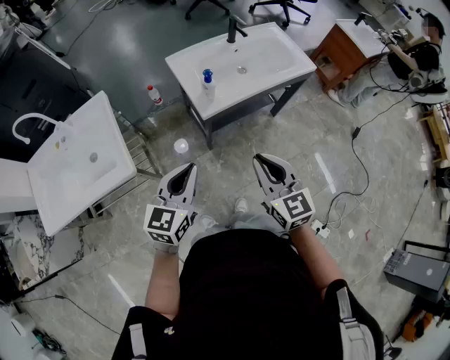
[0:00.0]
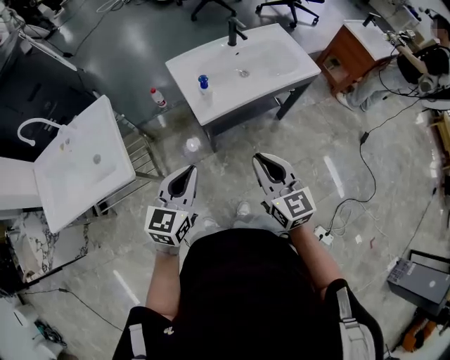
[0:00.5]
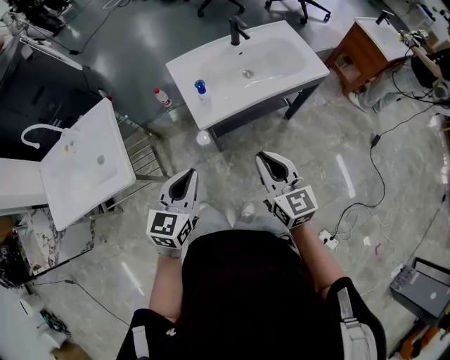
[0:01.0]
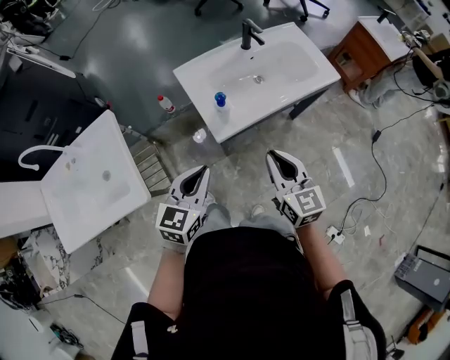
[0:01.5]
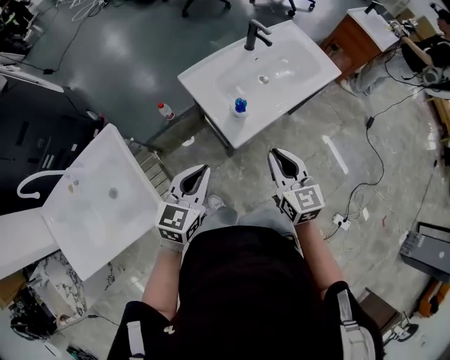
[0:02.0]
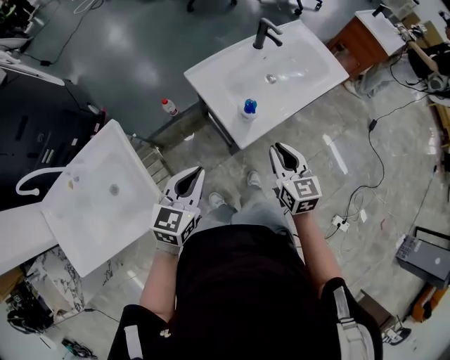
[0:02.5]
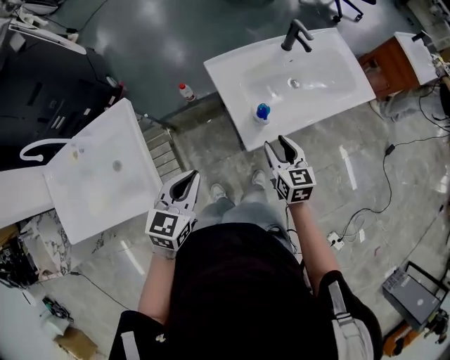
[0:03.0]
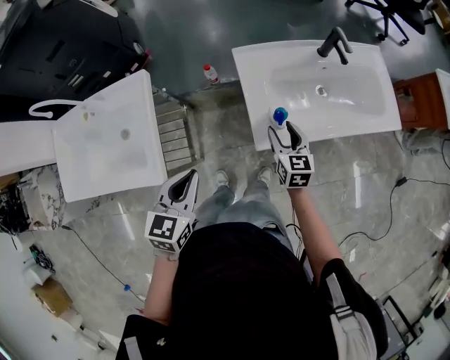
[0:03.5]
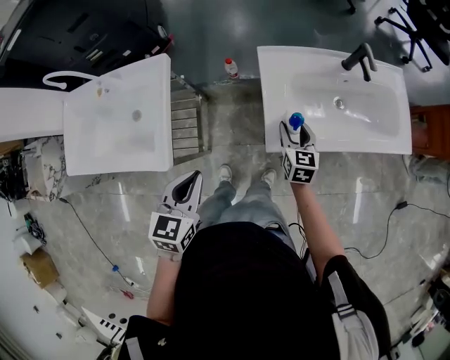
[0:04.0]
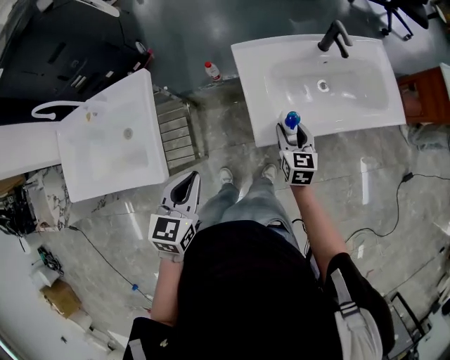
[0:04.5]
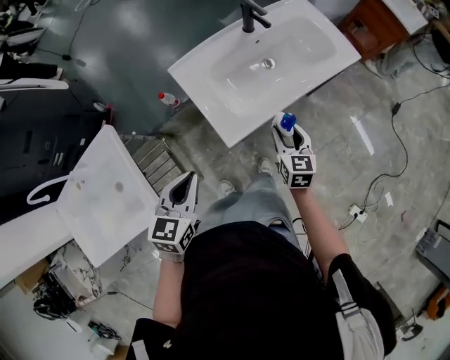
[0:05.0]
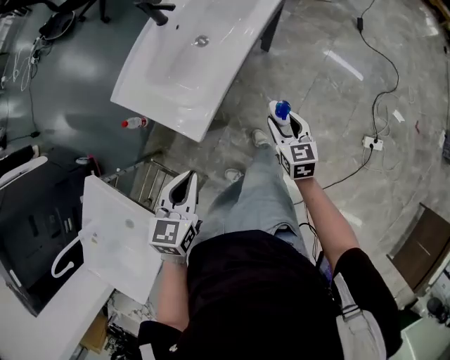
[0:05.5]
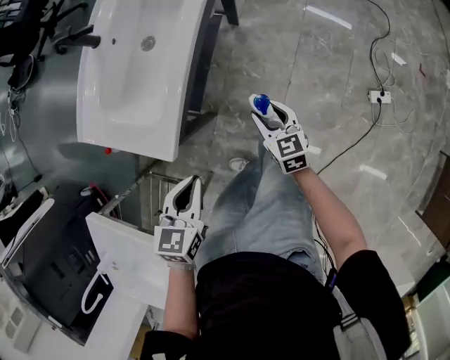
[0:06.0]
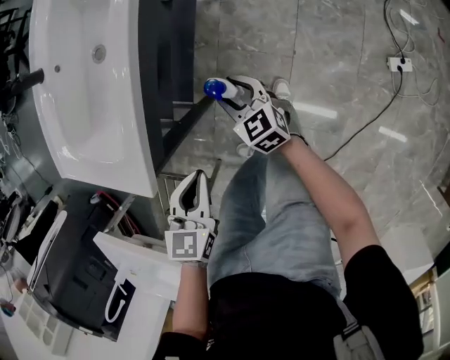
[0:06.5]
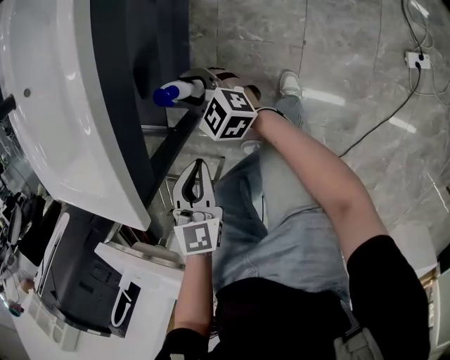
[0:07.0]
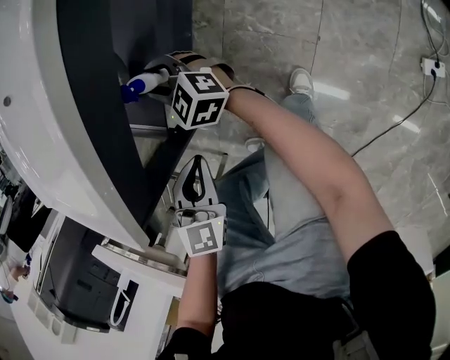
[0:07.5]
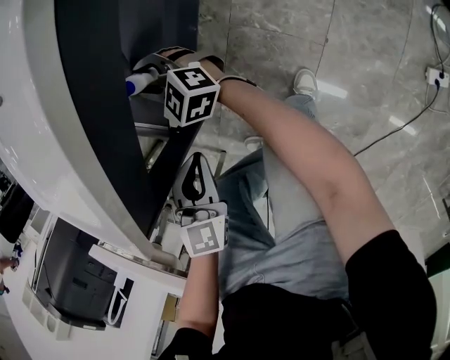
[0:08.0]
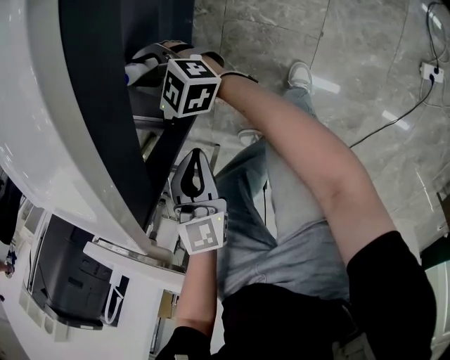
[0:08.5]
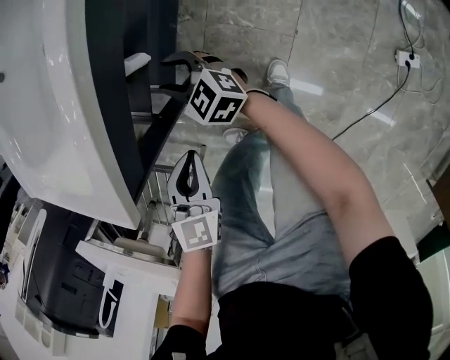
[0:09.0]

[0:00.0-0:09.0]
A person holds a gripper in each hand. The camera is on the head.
0:00.0 to 0:02.0: The left gripper moves forward and to the left, some 20 cm; the right gripper travels forward by some 15 cm.
0:02.0 to 0:04.5: The right gripper travels downward by some 15 cm, and opens its fingers; the left gripper shifts by some 5 cm, and swivels some 30 degrees.
0:04.5 to 0:07.0: Both grippers move downward, roughly 30 cm. The left gripper changes its angle by roughly 60 degrees.
0:07.0 to 0:09.0: The right gripper goes forward and returns, roughly 10 cm each way.

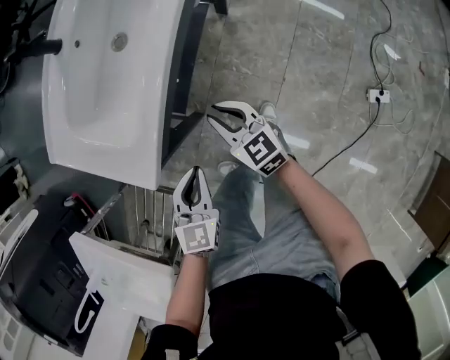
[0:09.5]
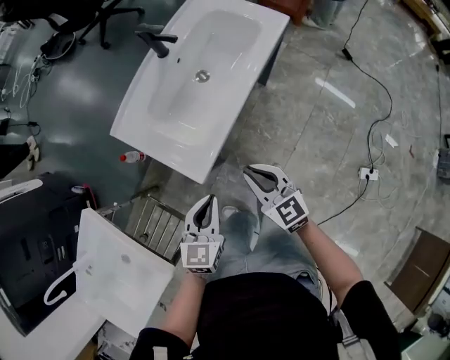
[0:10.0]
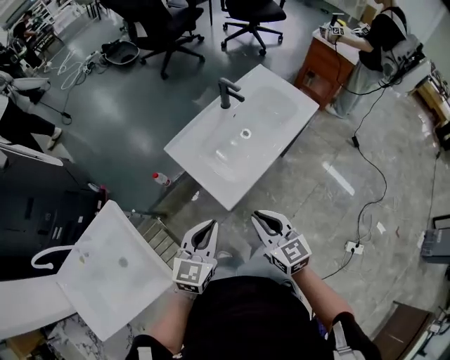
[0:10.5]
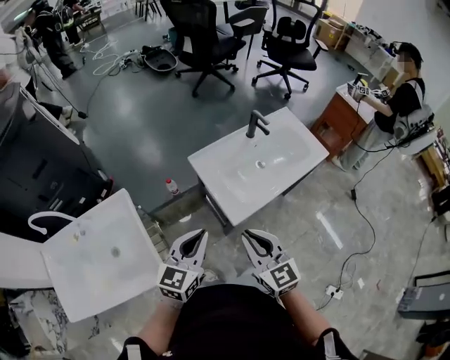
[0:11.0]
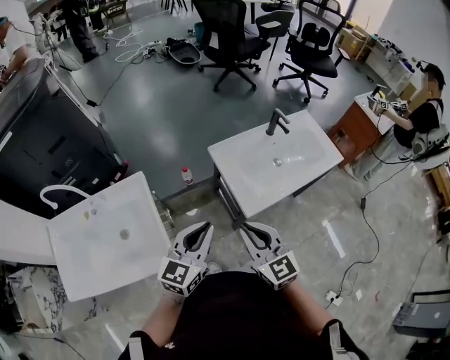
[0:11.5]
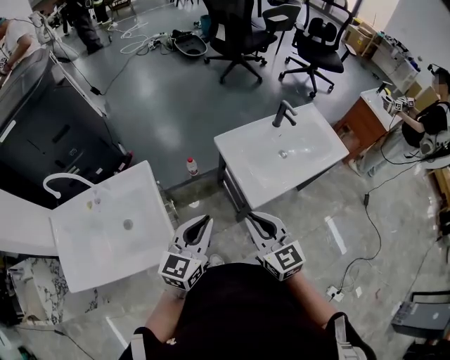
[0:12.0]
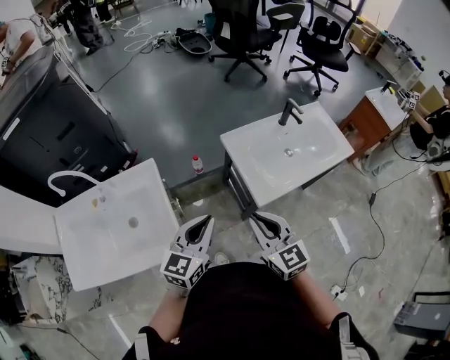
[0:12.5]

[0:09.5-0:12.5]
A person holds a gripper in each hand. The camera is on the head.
0:09.5 to 0:11.0: Both grippers travel together upward and to the left, about 40 cm. The left gripper turns by roughly 30 degrees; the right gripper swivels some 30 degrees.
0:11.0 to 0:12.5: Both grippers travel together to the left, about 10 cm.

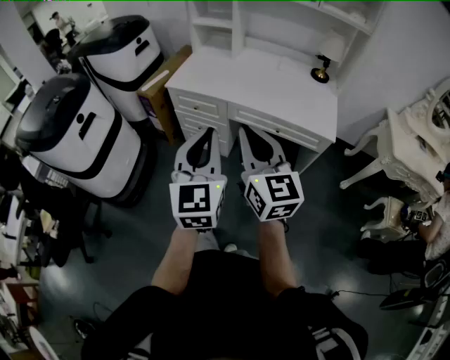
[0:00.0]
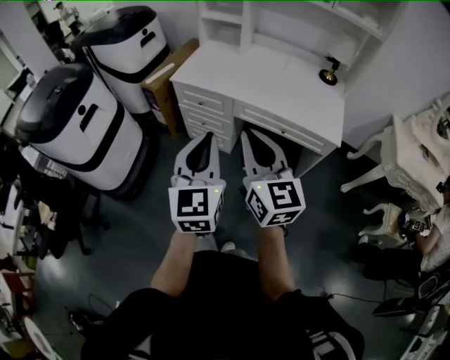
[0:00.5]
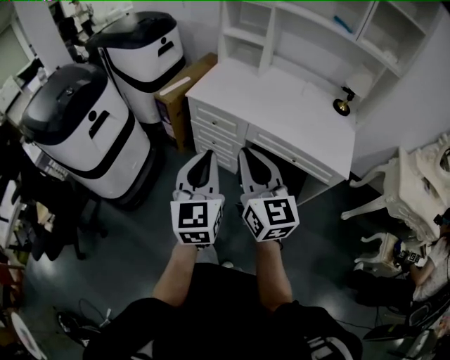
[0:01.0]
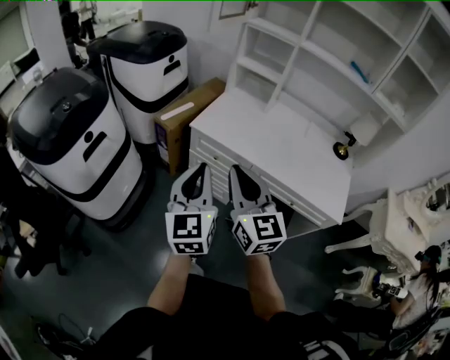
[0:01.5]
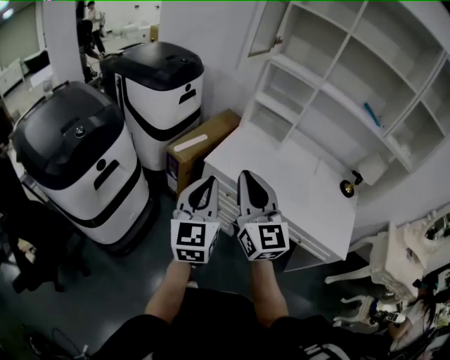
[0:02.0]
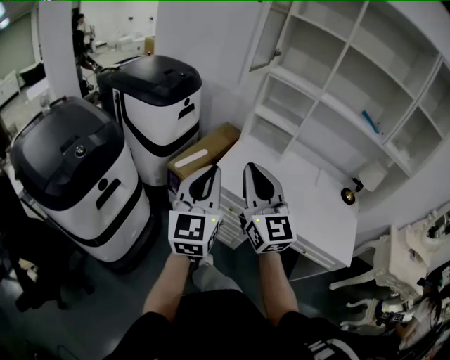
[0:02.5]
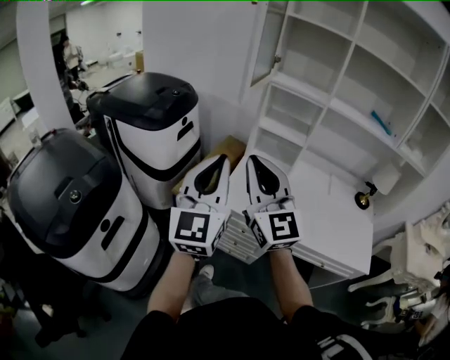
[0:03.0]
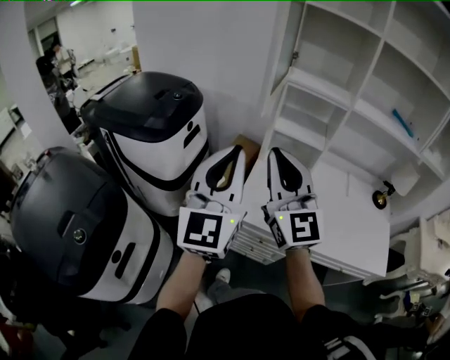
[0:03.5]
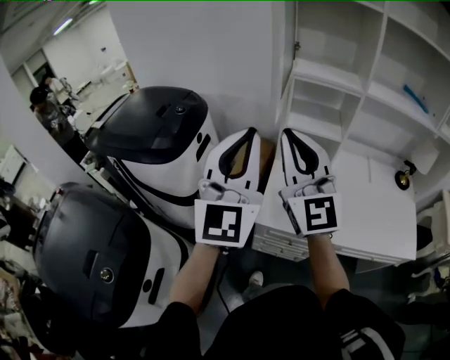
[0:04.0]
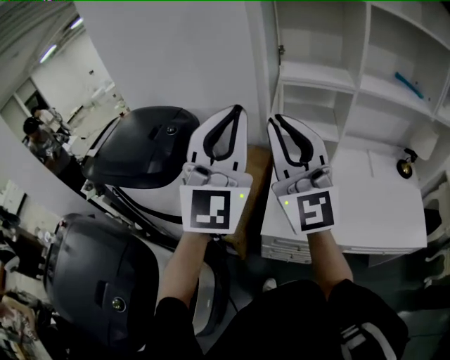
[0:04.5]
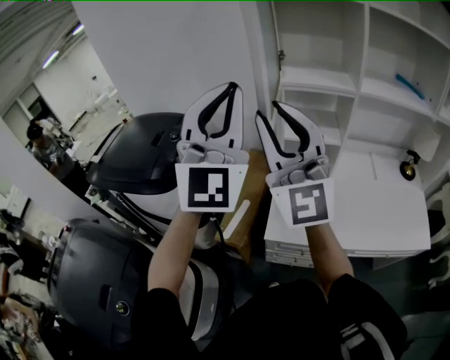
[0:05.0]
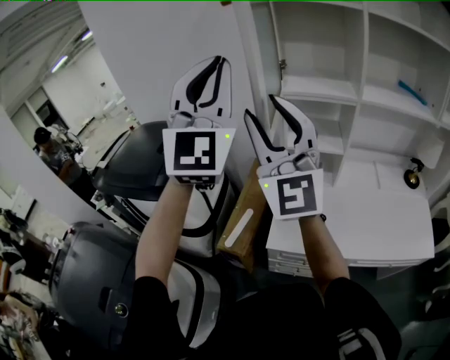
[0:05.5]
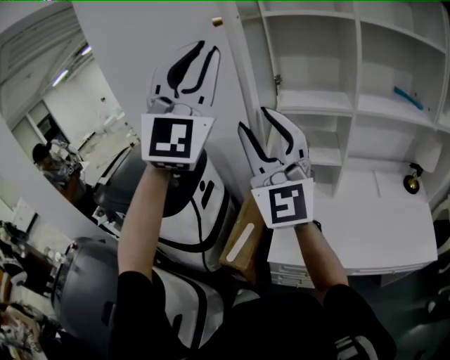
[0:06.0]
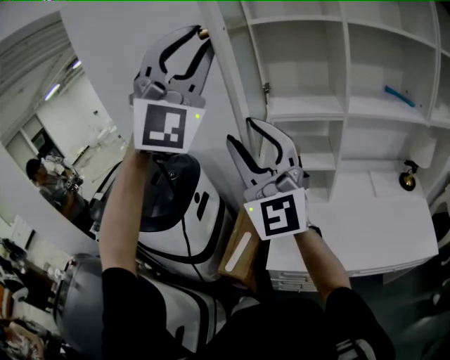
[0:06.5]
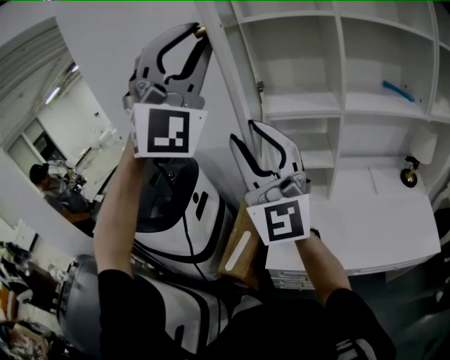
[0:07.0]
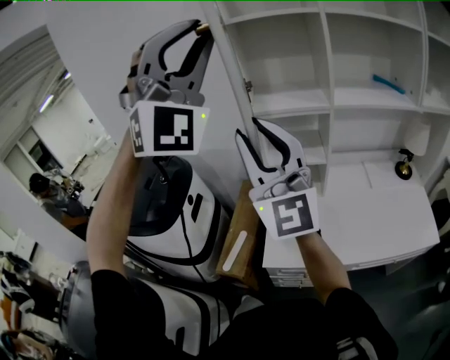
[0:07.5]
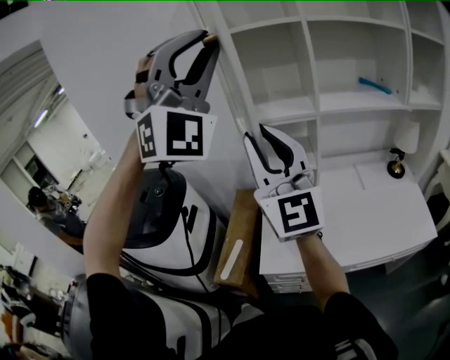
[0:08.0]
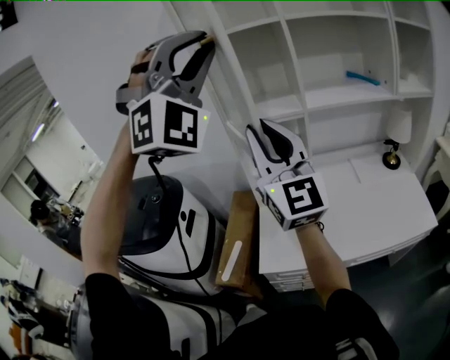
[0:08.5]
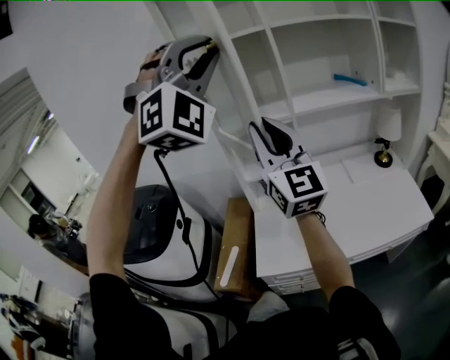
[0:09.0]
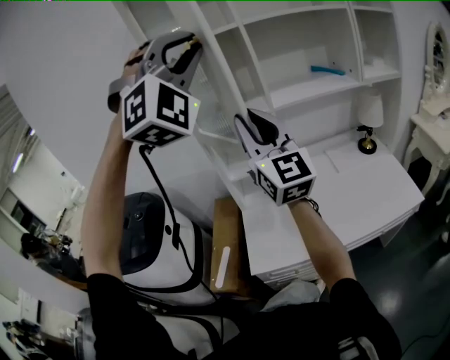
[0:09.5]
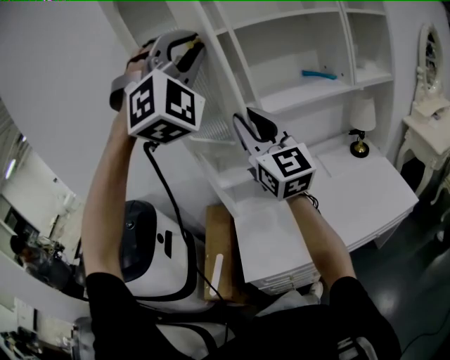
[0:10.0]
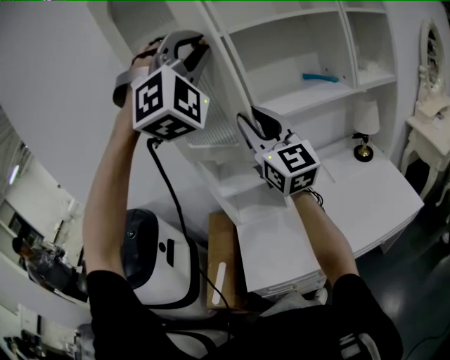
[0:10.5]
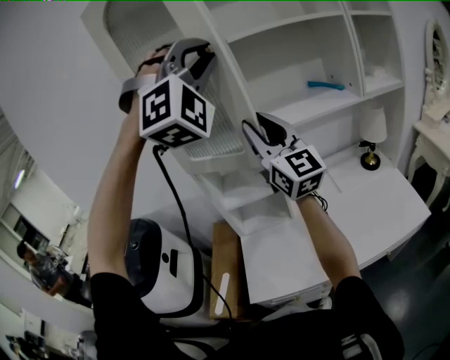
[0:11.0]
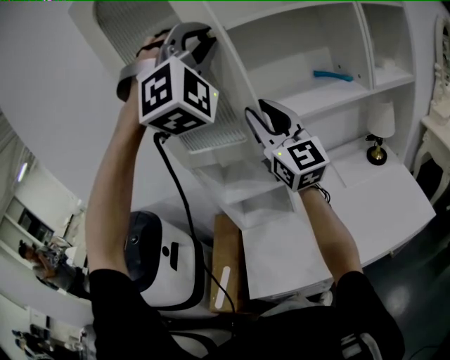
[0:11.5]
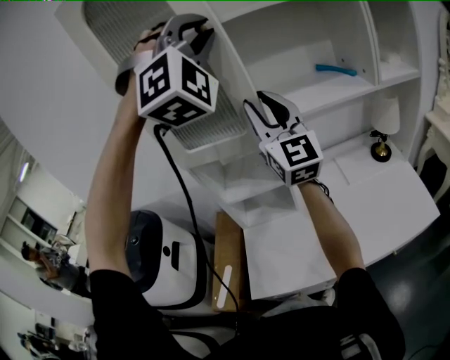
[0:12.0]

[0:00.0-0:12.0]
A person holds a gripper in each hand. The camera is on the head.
0:00.0 to 0:02.0: Both grippers travel together forward and to the left, about 40 cm.
0:02.0 to 0:04.0: The left gripper goes some 40 cm forward and upward, and turns by roughly 30 degrees. Meanwhile the right gripper moves forward, roughly 35 cm, and turns by approximately 20 degrees.
0:04.0 to 0:06.0: The left gripper moves upward and forward, roughly 25 cm, and swivels roughly 30 degrees, while the right gripper goes approximately 10 cm upward and forward, and opens its fingers.
0:06.0 to 0:08.0: Both grippers travel together to the right, about 10 cm. The left gripper turns by some 40 degrees.
0:08.0 to 0:10.0: Both grippers travel together to the right and forward, some 15 cm.
0:10.0 to 0:12.0: Both grippers travel together forward and to the right, approximately 15 cm.

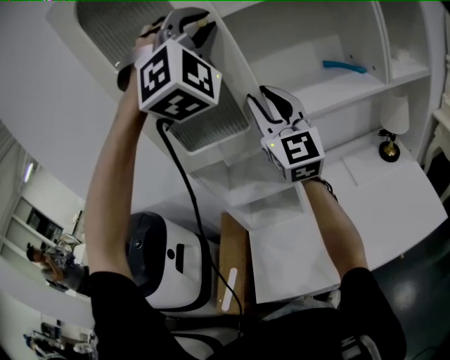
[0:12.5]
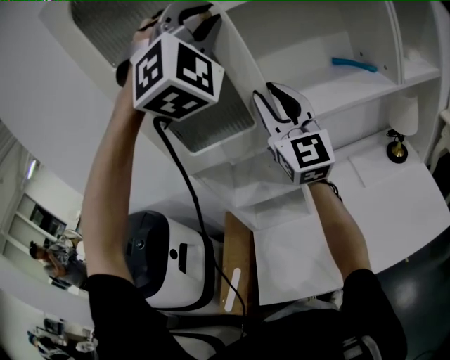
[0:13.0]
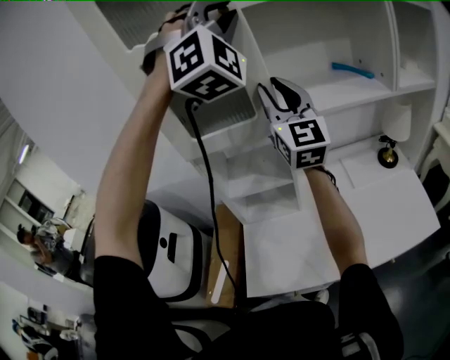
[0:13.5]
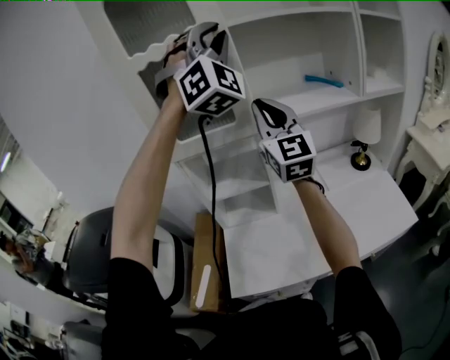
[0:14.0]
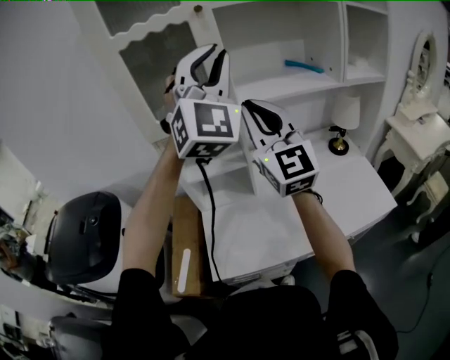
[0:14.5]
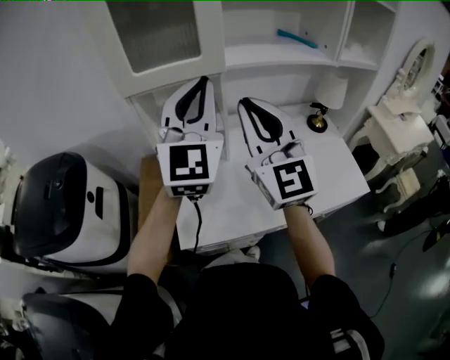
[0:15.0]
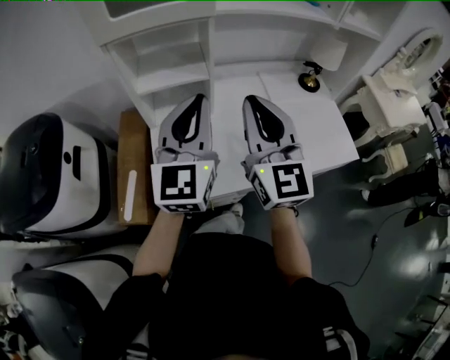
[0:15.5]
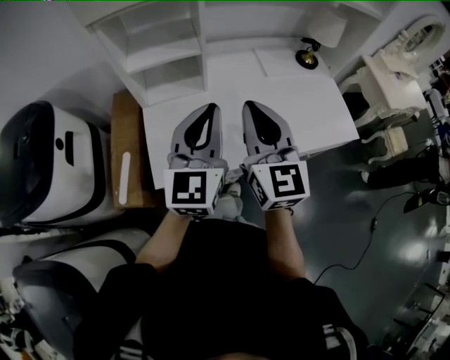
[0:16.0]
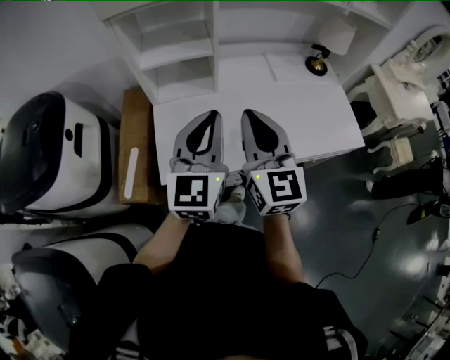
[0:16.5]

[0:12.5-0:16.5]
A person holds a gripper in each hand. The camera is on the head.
0:12.5 to 0:14.5: The left gripper travels backward and downward by some 15 cm, and rolls counterclockwise, seen from behind, by approximately 40 degrees; the right gripper shifts about 10 cm backward, and closes.
0:14.5 to 0:16.5: The two grippers go roughly 35 cm downward and backward. The right gripper rotates approximately 30 degrees. Meanwhile the left gripper rolls counterclockwise, seen from behind, by roughly 50 degrees.
